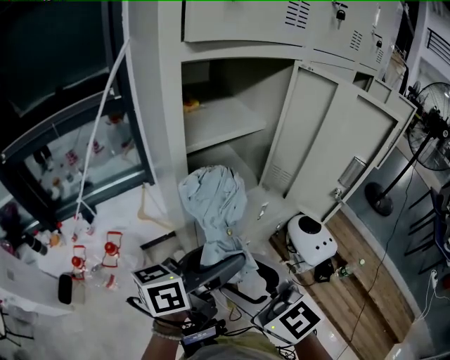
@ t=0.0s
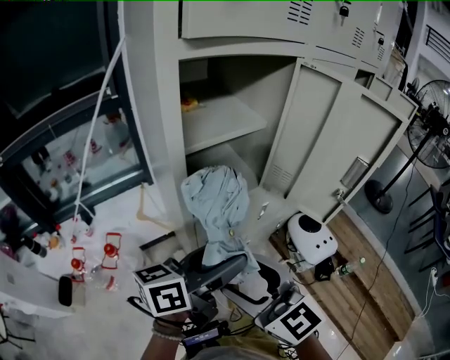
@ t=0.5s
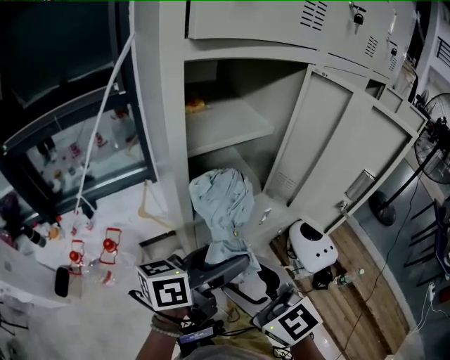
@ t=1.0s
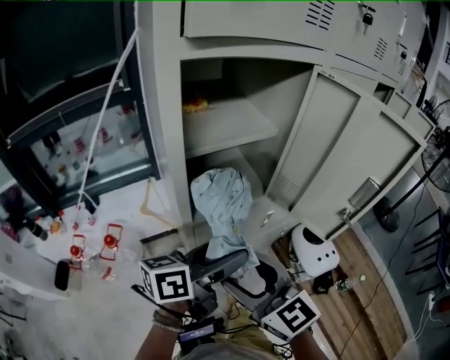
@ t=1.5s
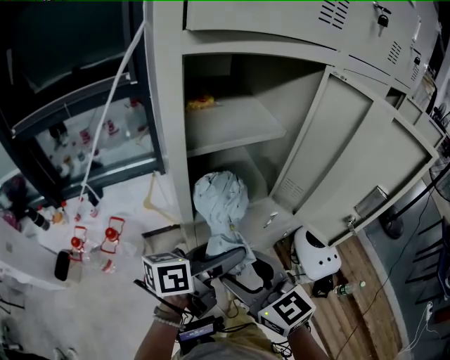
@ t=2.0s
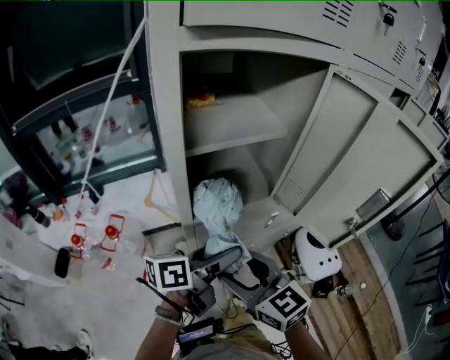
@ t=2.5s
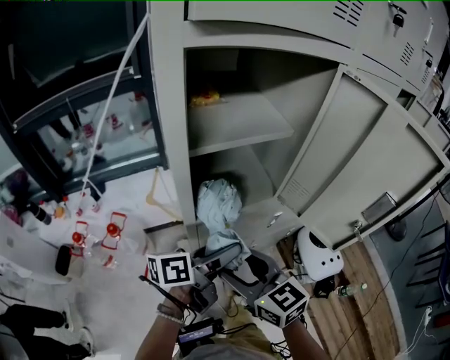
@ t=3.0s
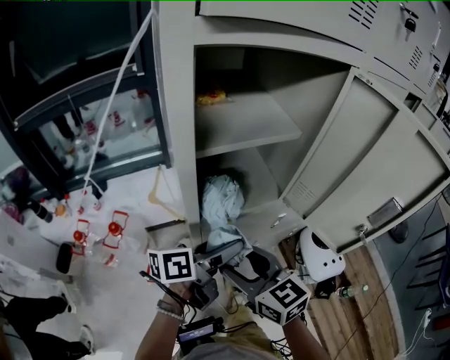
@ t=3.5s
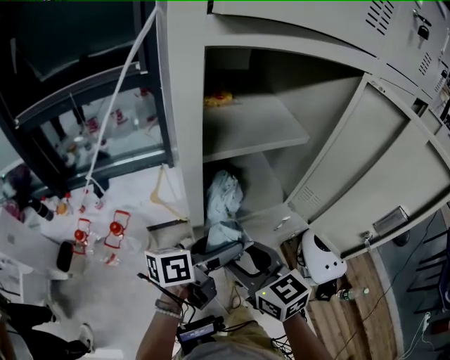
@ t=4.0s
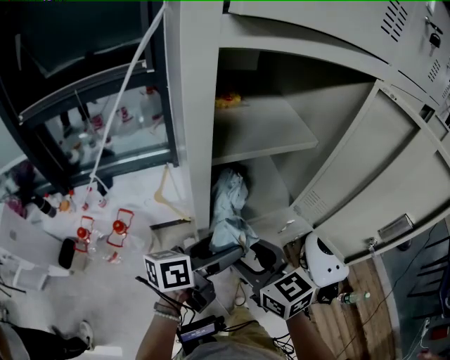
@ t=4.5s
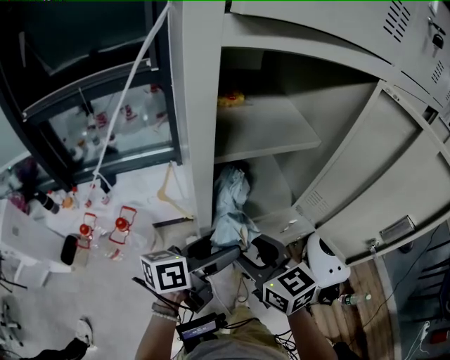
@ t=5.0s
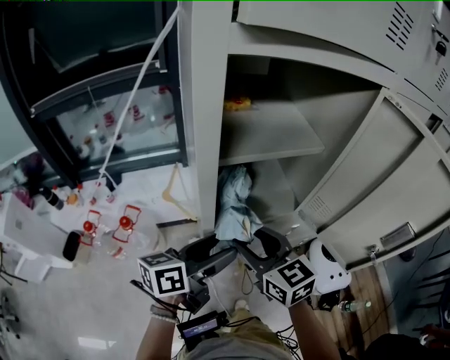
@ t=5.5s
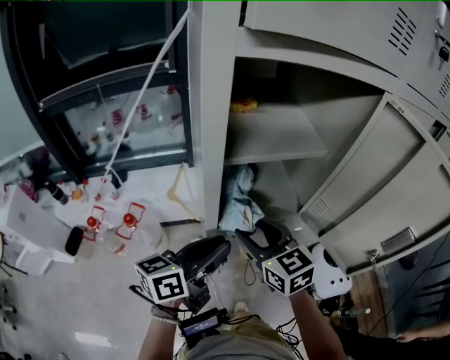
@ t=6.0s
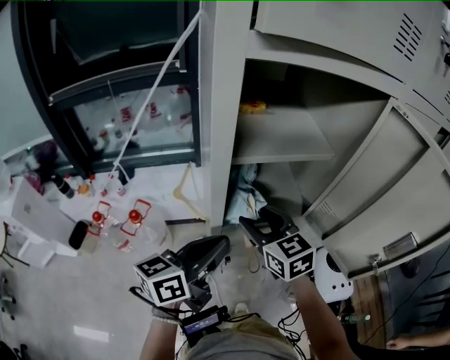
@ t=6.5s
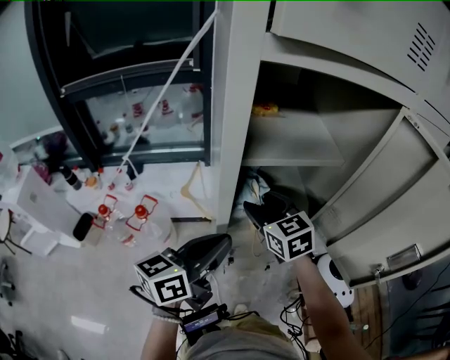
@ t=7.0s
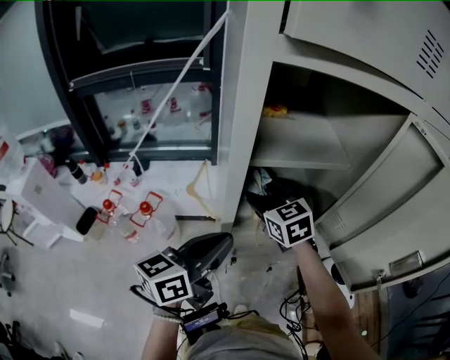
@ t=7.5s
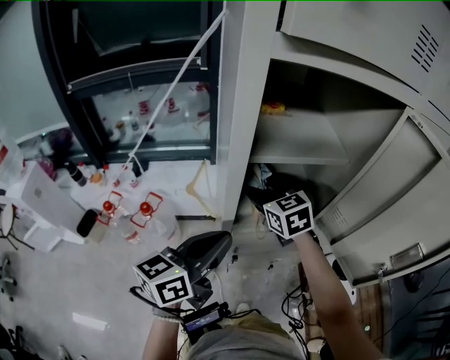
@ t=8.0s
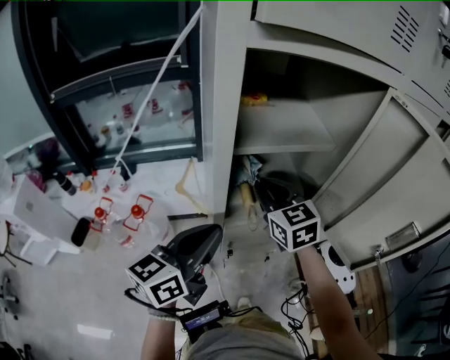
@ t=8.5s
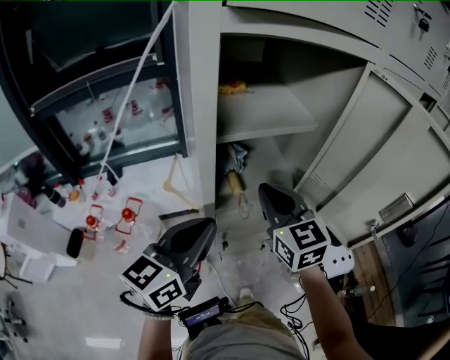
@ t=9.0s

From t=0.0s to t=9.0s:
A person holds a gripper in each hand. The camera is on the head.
From t=0.0s to t=2.0s: The right gripper travels forward by some 5 cm. The left gripper goes about 10 cm forward and downward.
From t=2.0s to t=4.5s: The right gripper travels forward by roughly 10 cm. Meanwhile the left gripper goes about 10 cm forward and to the left.
From t=4.5s to t=7.0s: The right gripper goes some 15 cm forward. The left gripper is displaced upward by approximately 5 cm, turns by about 20 degrees, and closes its fingers.
From t=7.0s to t=9.0s: The right gripper shifts about 10 cm backward, upward and to the right, and closes.

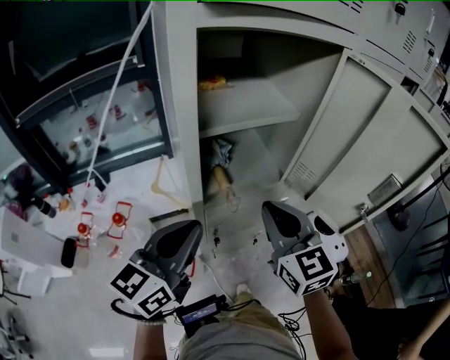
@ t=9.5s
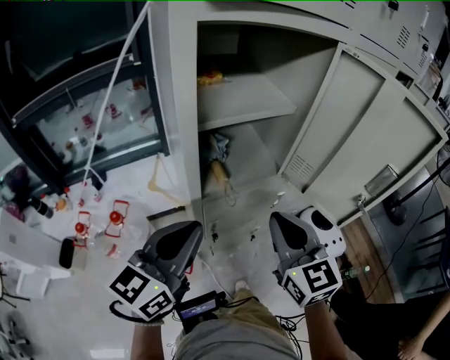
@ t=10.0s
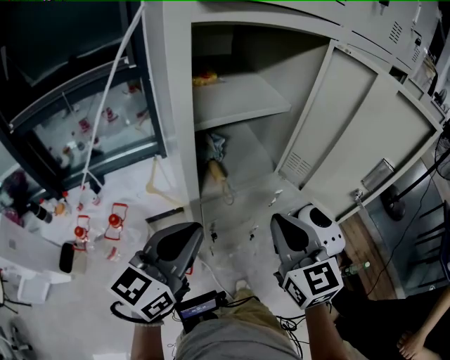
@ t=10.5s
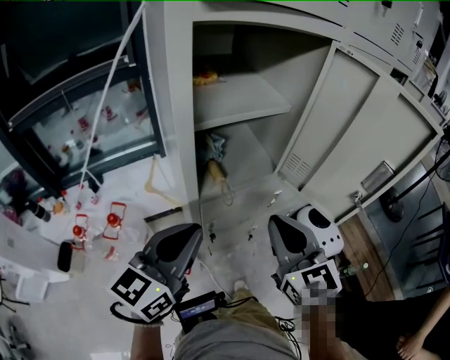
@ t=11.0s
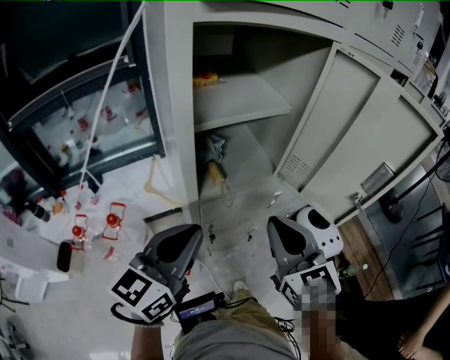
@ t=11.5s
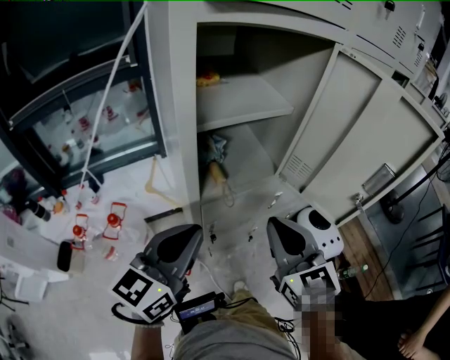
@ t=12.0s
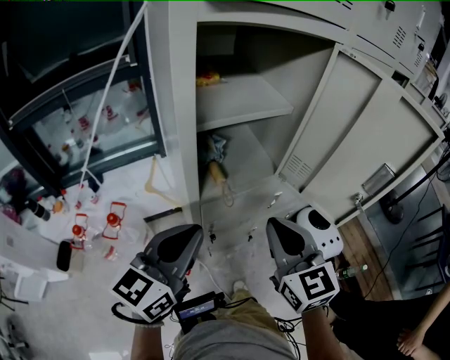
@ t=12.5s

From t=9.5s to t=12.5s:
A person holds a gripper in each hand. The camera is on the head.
From t=9.5s to t=11.0s: The right gripper ends up roughly 5 cm from where it was.
From t=11.0s to t=12.5s: Both grippers stay about where they are.

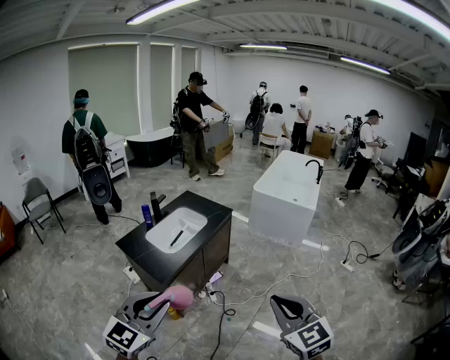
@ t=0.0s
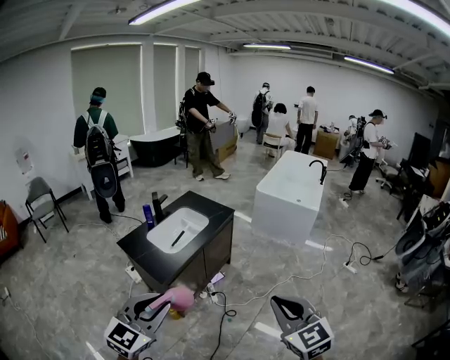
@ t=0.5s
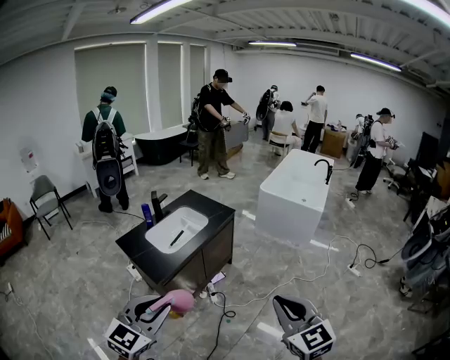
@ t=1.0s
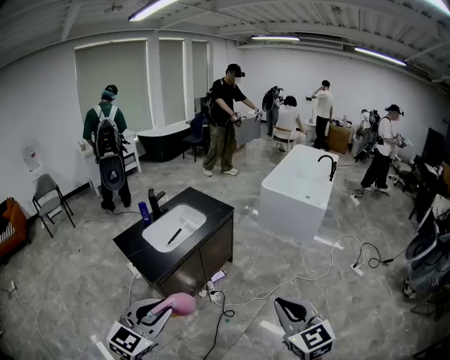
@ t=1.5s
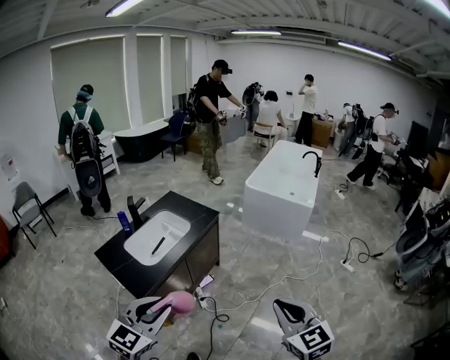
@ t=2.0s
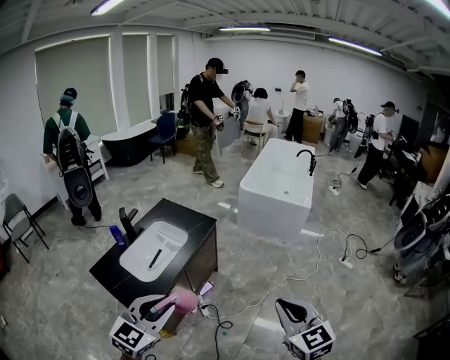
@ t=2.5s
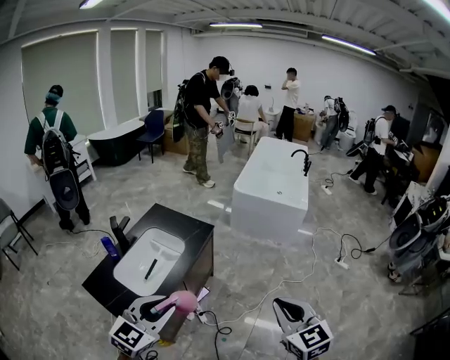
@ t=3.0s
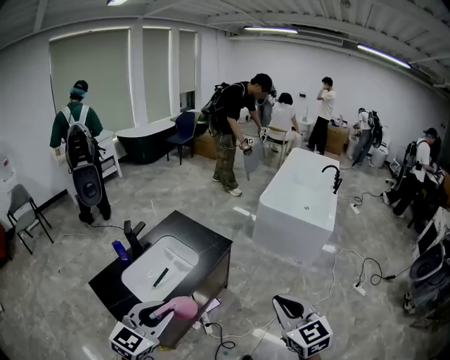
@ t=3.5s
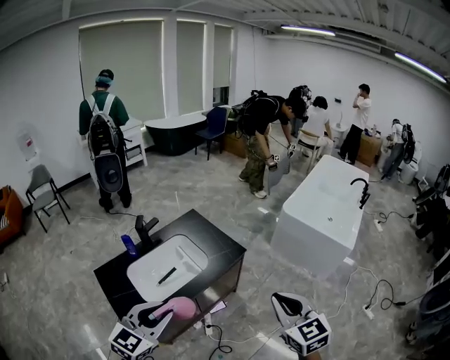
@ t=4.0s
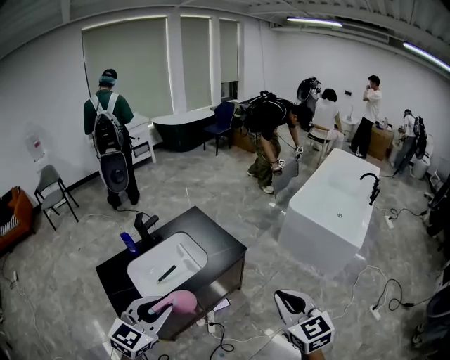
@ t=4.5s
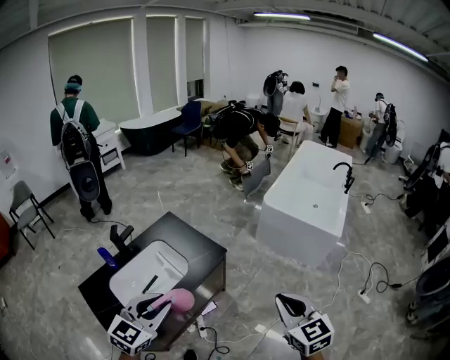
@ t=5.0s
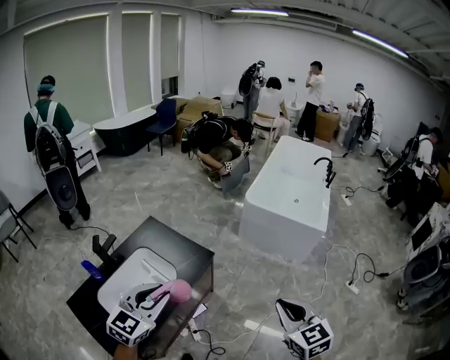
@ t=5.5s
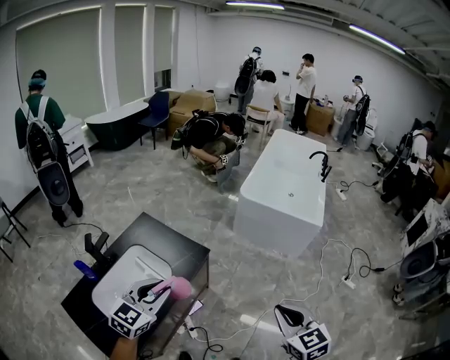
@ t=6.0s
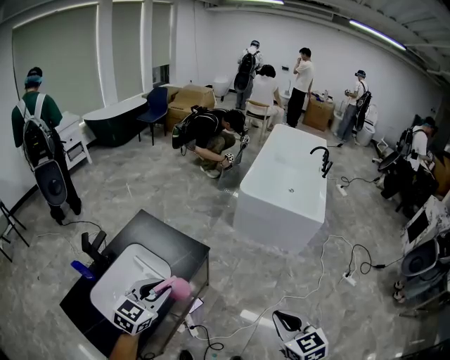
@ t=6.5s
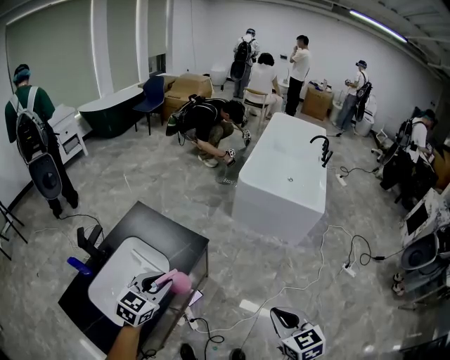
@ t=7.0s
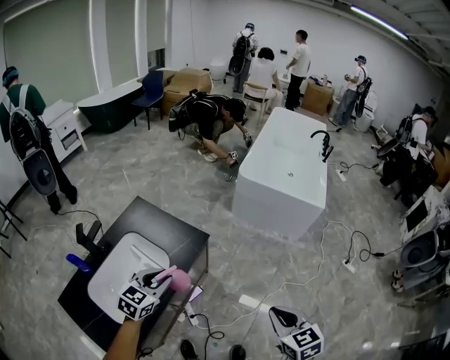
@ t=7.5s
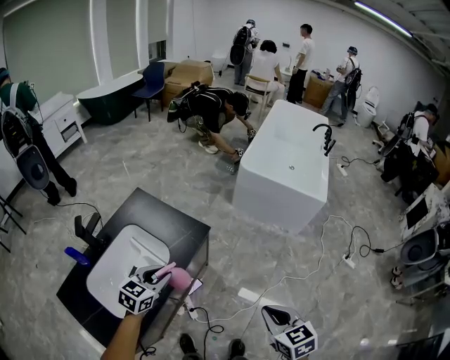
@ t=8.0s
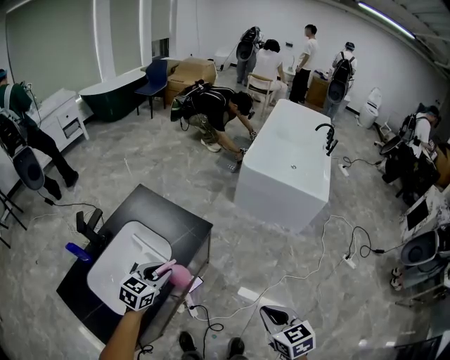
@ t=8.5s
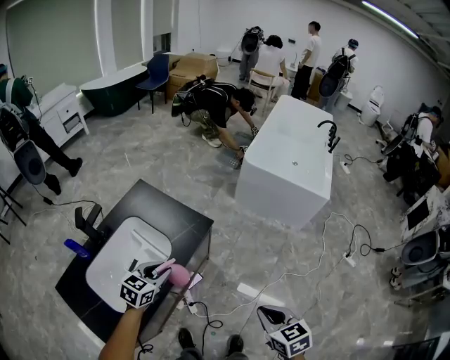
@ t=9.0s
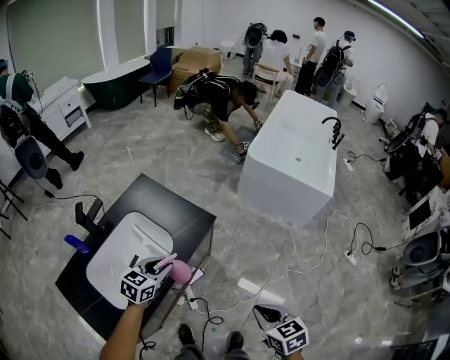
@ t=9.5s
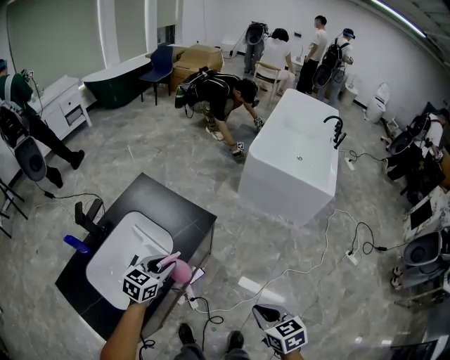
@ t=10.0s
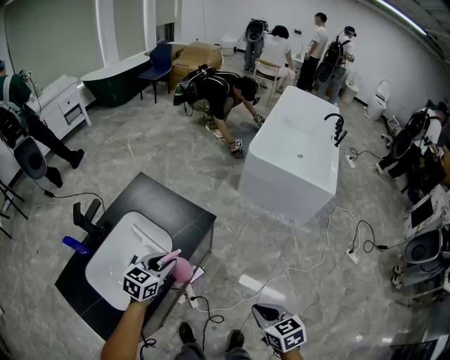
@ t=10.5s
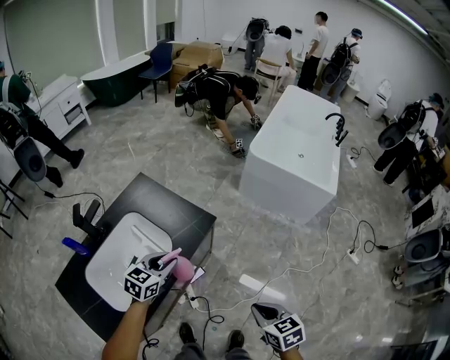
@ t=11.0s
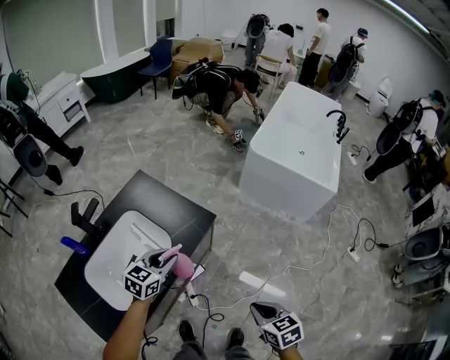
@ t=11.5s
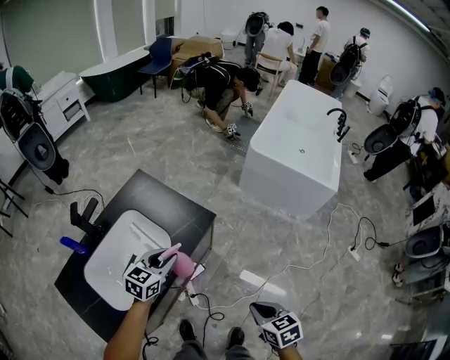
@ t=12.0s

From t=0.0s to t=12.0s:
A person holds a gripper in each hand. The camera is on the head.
From t=0.0s to t=2.0s: Both grippers move forward and to the right, approximately 25 cm.
From t=2.0s to t=4.0s: Both grippers move forward, about 40 cm.
From t=4.0s to t=6.0s: The right gripper goes approximately 15 cm downward, to the right and forward, and changes its angle by some 20 degrees, while the left gripper heads forward, covering about 25 cm.
From t=6.0s to t=8.0s: The grippers both shift downward by approximately 15 cm.
From t=8.0s to t=10.0s: The right gripper travels downward by approximately 5 cm.
From t=10.0s to t=12.0s: The right gripper goes some 5 cm downward.

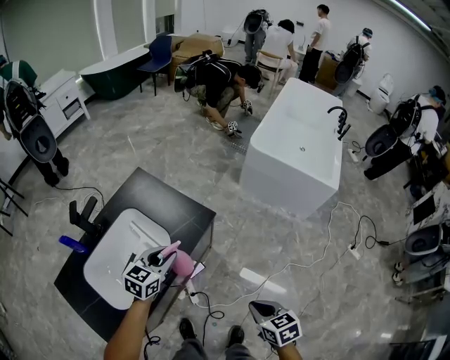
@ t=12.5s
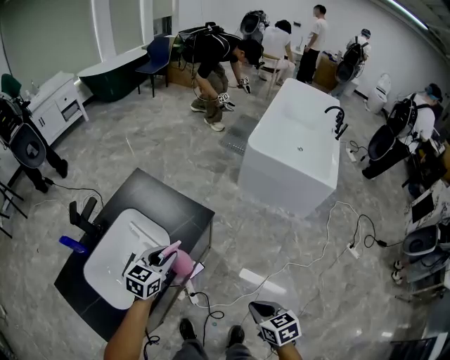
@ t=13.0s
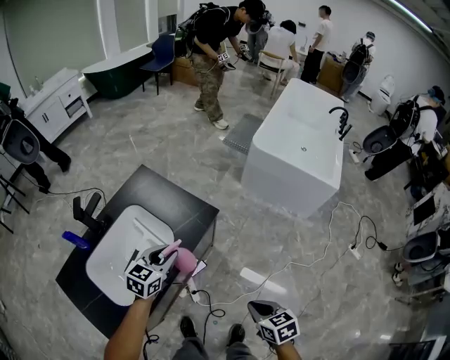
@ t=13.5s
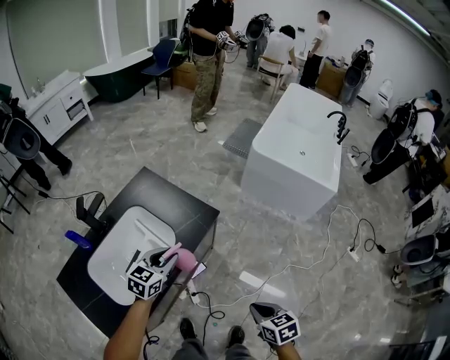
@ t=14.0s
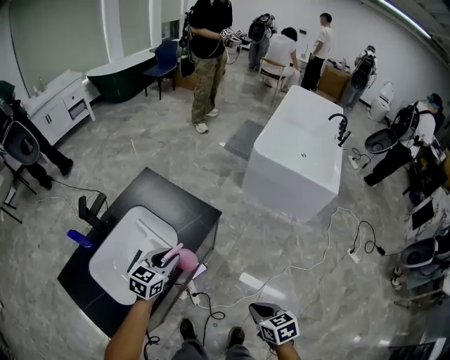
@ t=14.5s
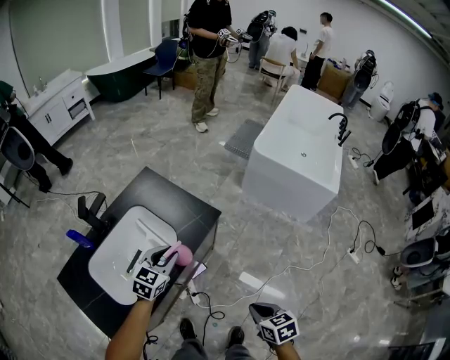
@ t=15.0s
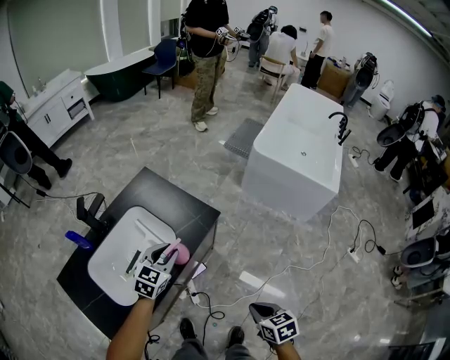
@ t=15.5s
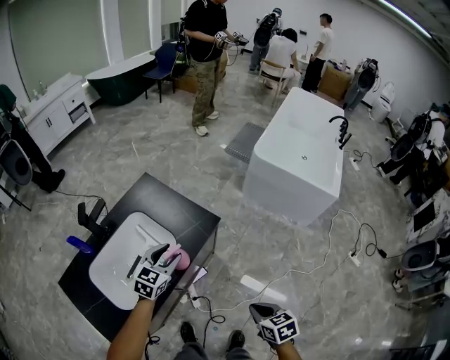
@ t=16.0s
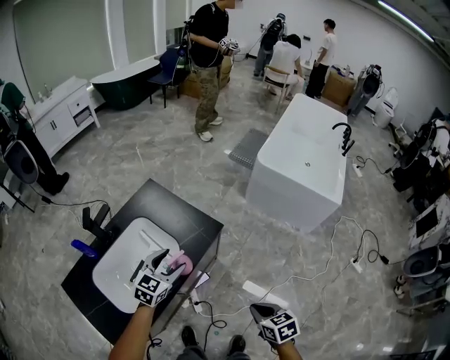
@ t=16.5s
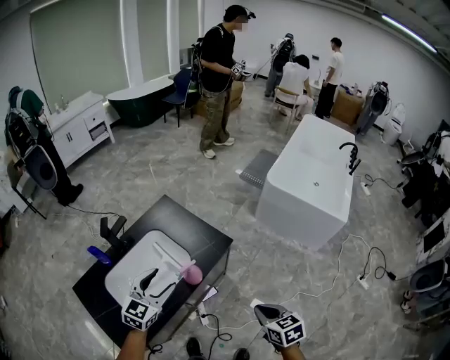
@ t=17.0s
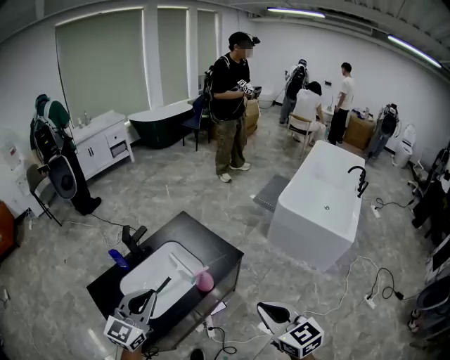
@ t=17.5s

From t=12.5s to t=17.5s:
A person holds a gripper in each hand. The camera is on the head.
From t=12.5s to t=15.0s: There are only small adjustments of the grippers.
From t=15.0s to t=17.5s: The left gripper goes roughly 30 cm upward and backward, swivels about 30 degrees, and opens, then closes once more; the right gripper is displaced upward by about 30 cm, and angles its fingers upward, by roughly 30 degrees.
